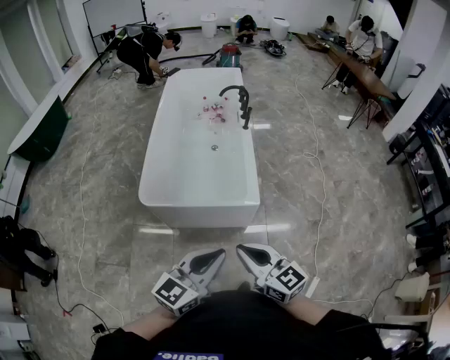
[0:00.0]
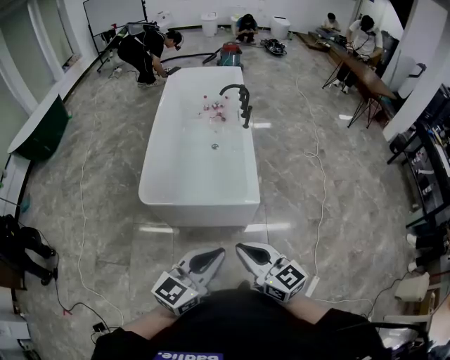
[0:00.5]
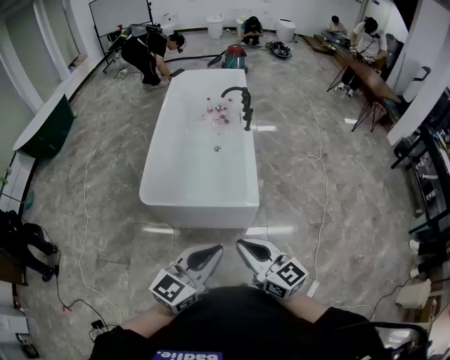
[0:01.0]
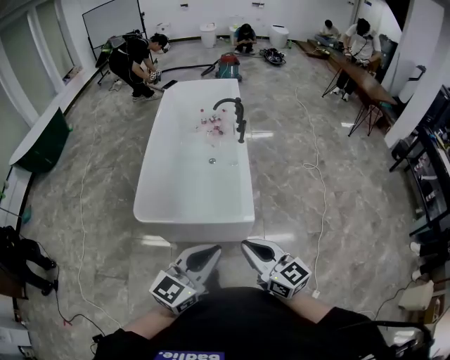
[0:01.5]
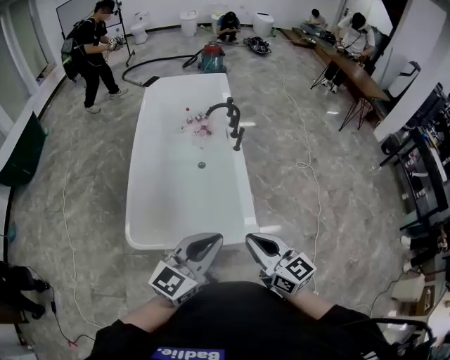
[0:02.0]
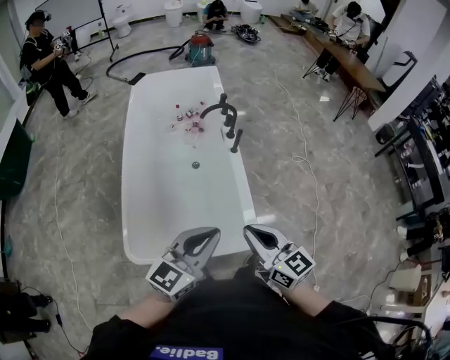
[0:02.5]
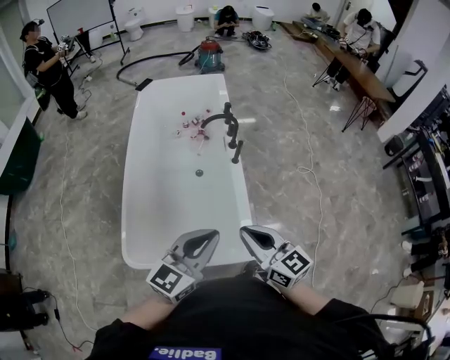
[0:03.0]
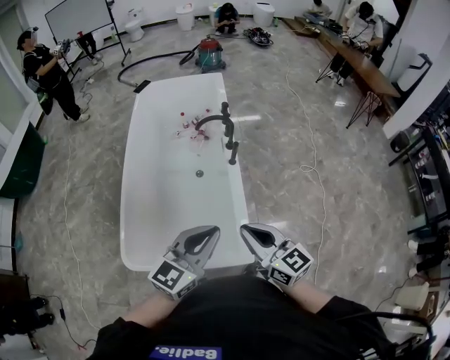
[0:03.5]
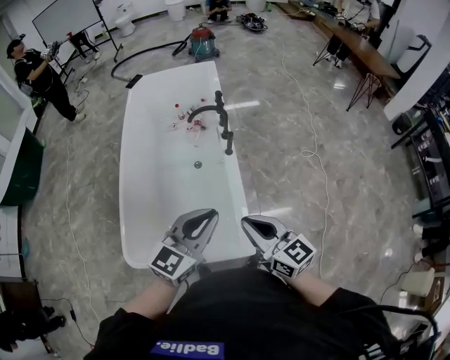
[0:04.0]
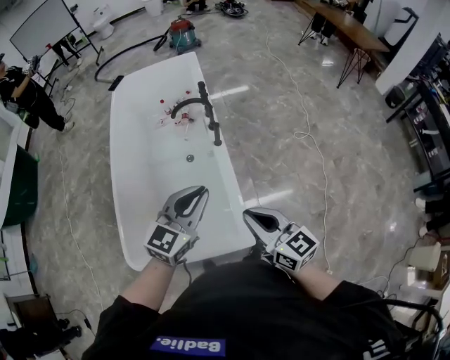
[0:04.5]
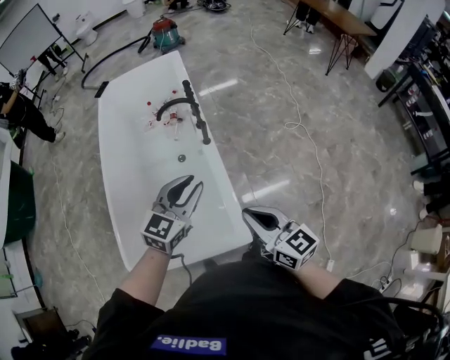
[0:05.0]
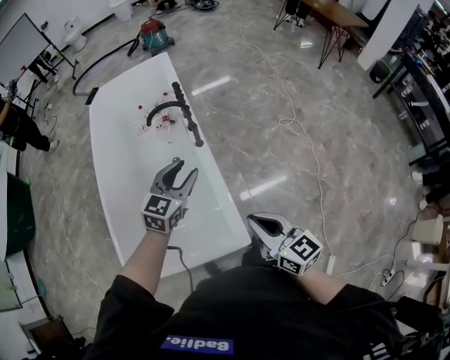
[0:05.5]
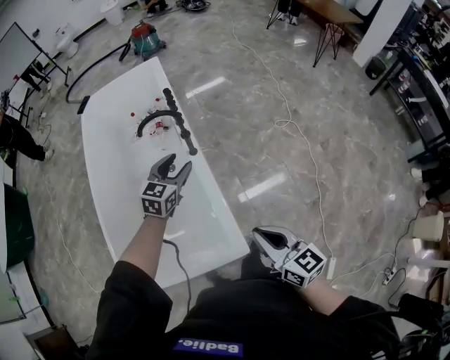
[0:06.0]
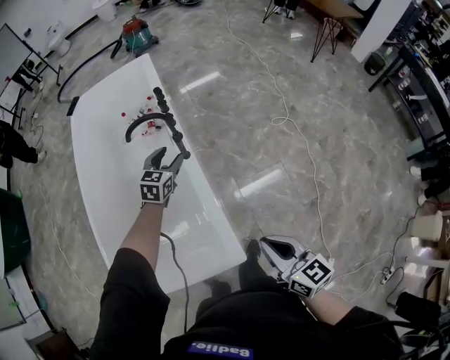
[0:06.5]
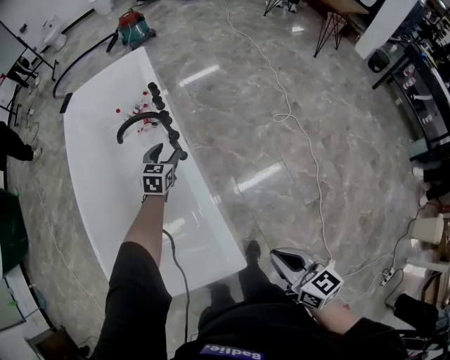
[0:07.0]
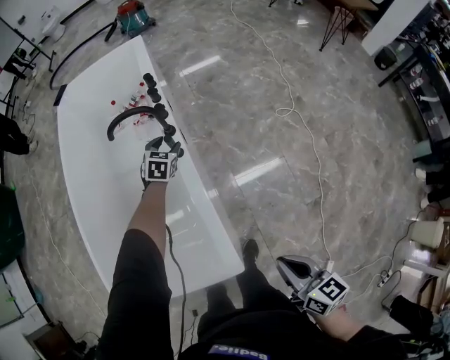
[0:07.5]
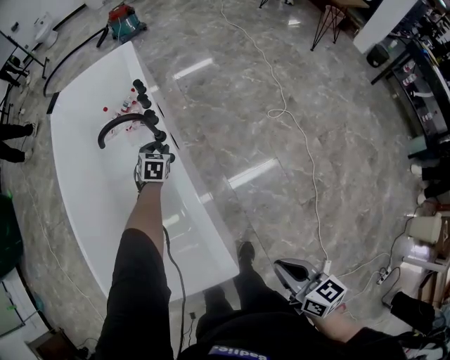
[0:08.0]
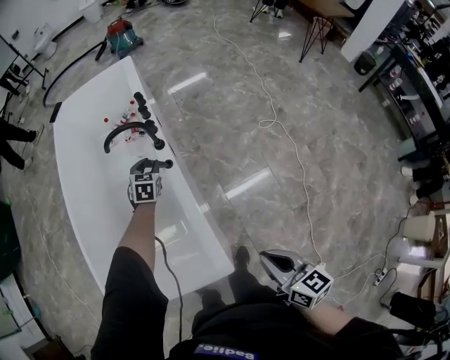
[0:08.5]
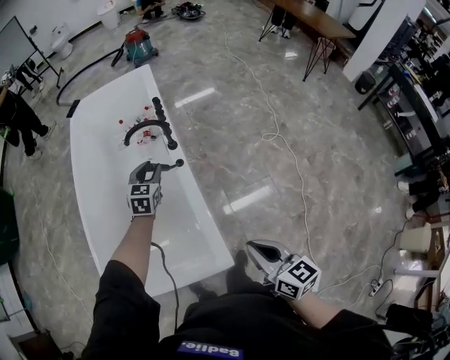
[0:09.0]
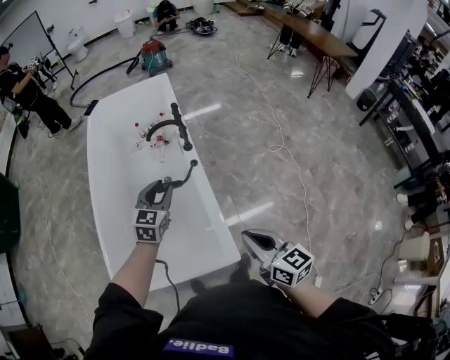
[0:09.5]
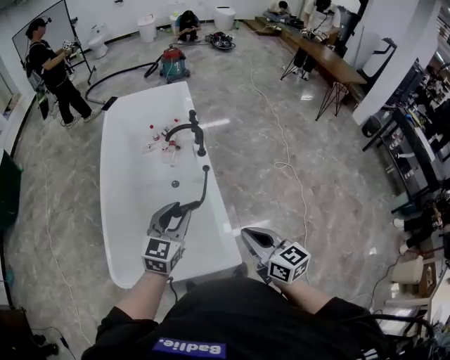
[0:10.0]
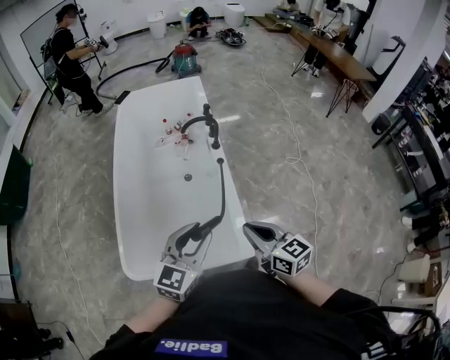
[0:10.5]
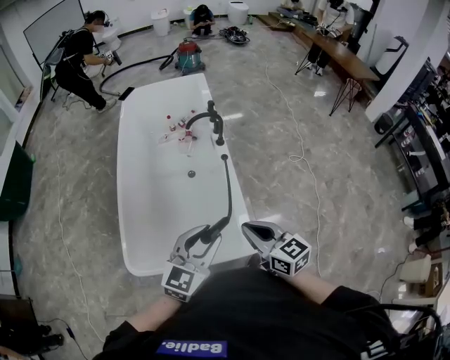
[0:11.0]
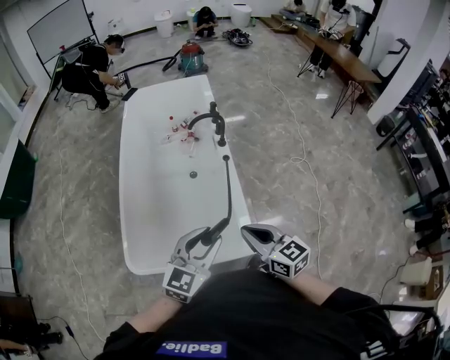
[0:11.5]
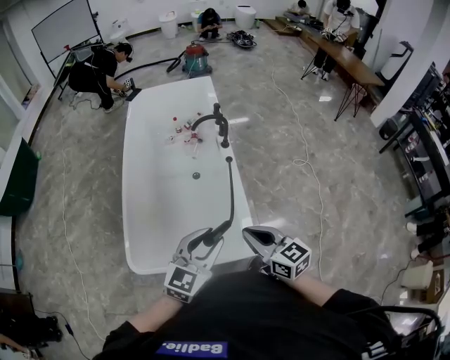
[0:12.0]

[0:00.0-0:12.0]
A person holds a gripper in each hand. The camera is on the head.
0:00.0 to 0:02.0: Both grippers move forward, roughly 30 cm.
0:02.0 to 0:04.0: Both grippers travel together forward, roughly 20 cm.
0:04.0 to 0:06.0: The left gripper goes approximately 30 cm forward and downward, and opens; the right gripper goes roughly 15 cm to the right and downward.
0:06.0 to 0:08.0: The left gripper shifts approximately 30 cm downward and forward, and swivels roughly 30 degrees; the right gripper shifts roughly 15 cm downward and to the right.
0:08.0 to 0:10.0: The right gripper goes about 30 cm to the left and upward, and rotates roughly 20 degrees; the left gripper shifts about 60 cm backward, upward and to the left, and angles its fingers upward, by some 30 degrees.
0:10.0 to 0:12.0: The left gripper moves backward, roughly 15 cm; the right gripper moves to the left, about 10 cm.

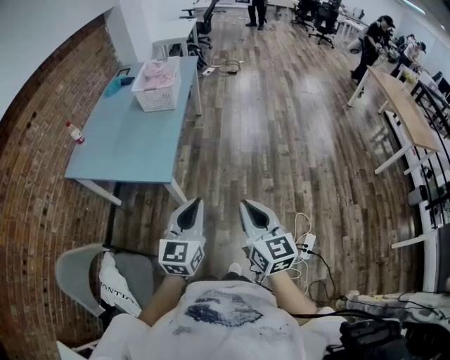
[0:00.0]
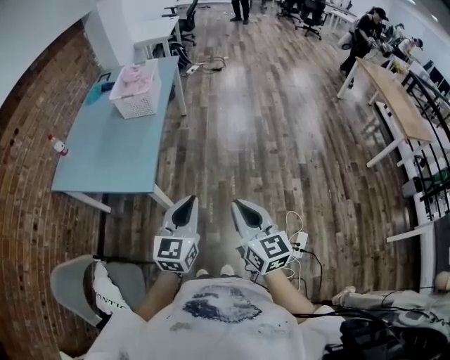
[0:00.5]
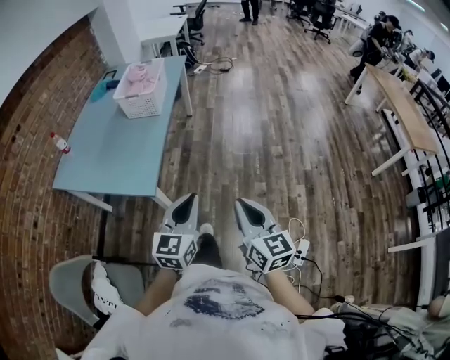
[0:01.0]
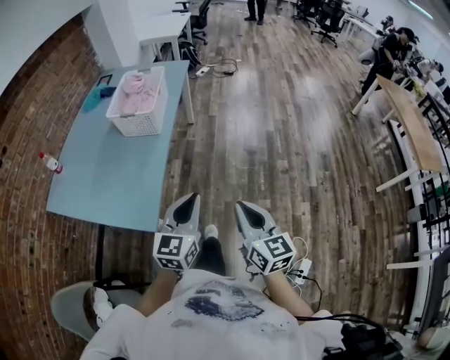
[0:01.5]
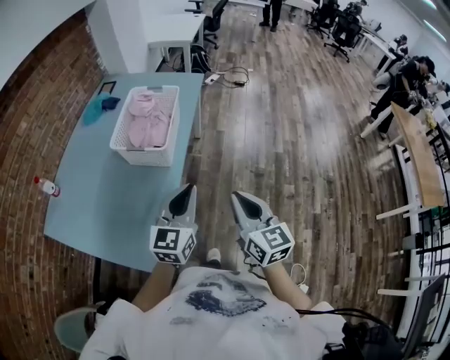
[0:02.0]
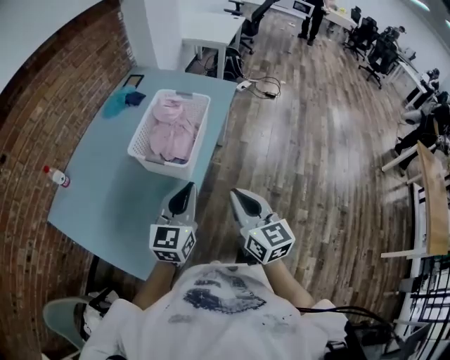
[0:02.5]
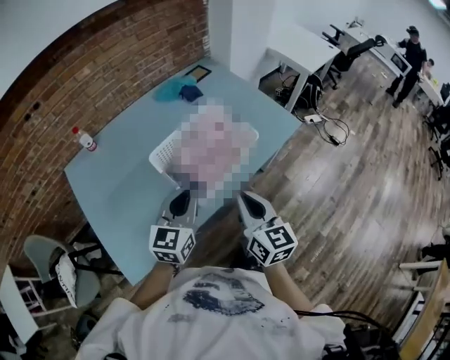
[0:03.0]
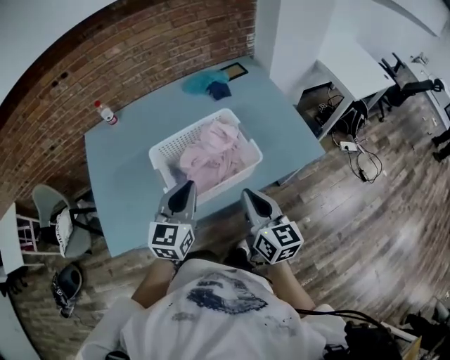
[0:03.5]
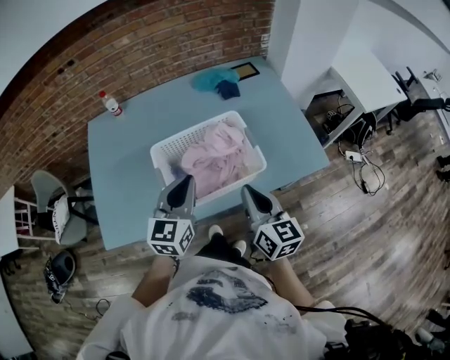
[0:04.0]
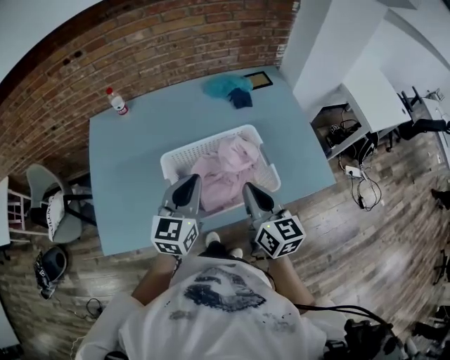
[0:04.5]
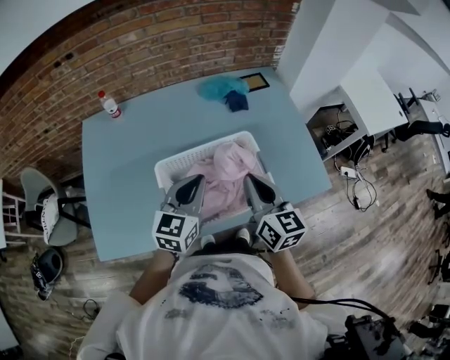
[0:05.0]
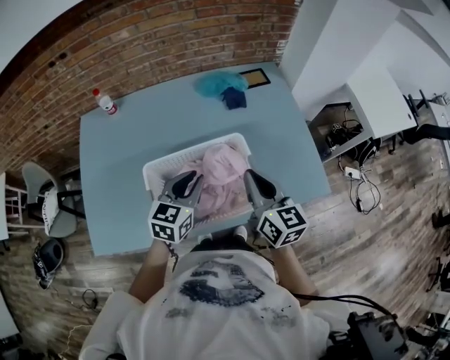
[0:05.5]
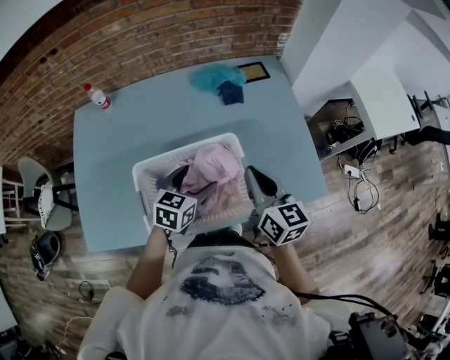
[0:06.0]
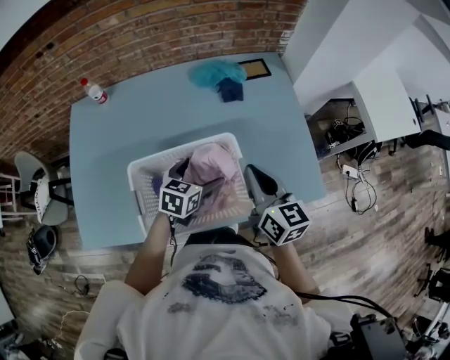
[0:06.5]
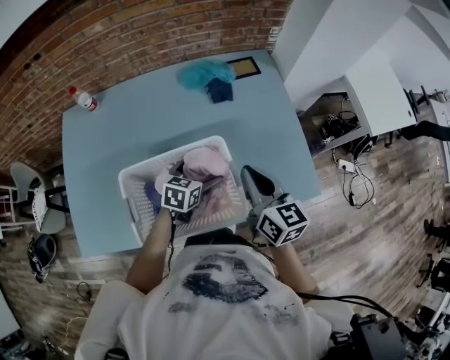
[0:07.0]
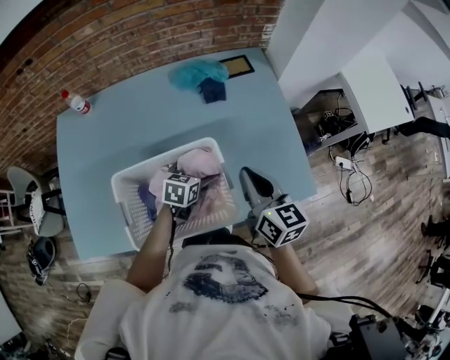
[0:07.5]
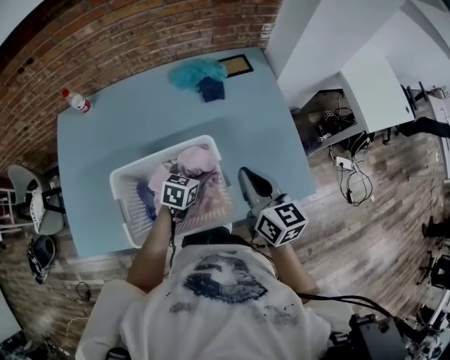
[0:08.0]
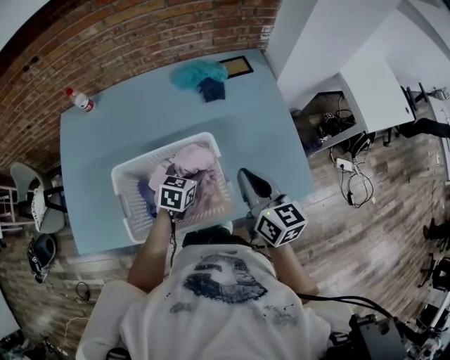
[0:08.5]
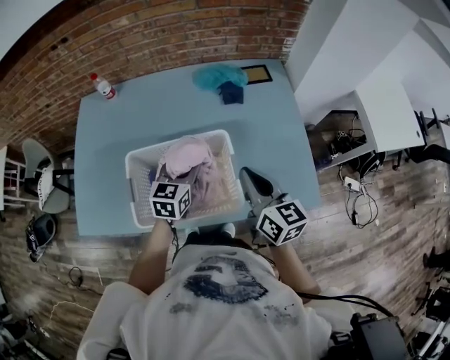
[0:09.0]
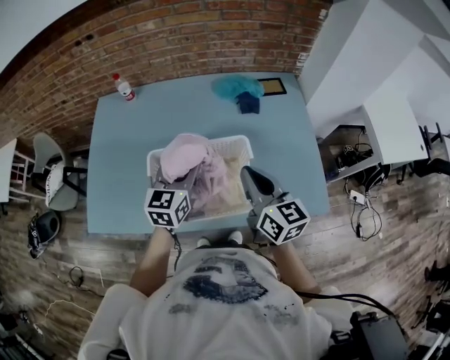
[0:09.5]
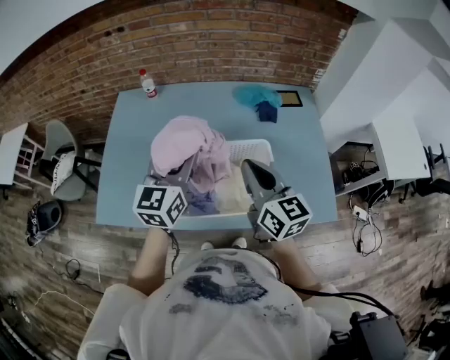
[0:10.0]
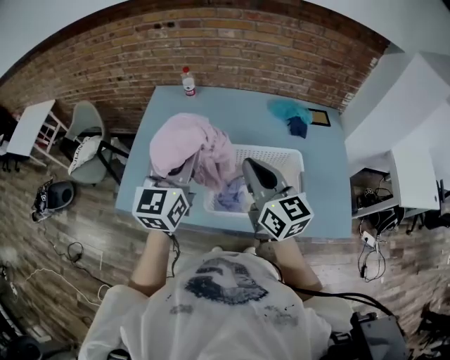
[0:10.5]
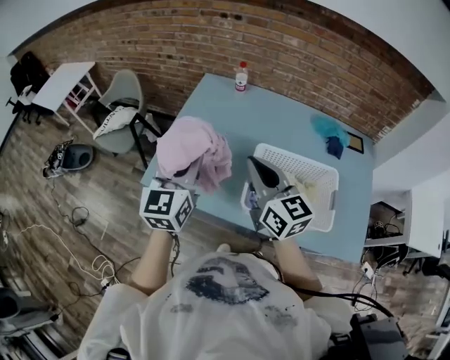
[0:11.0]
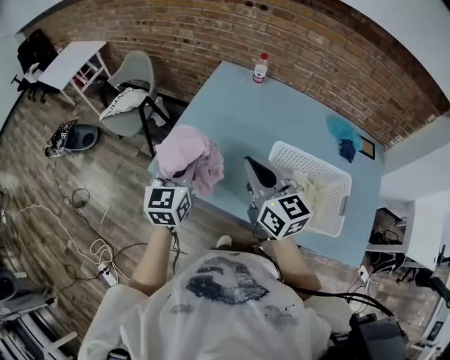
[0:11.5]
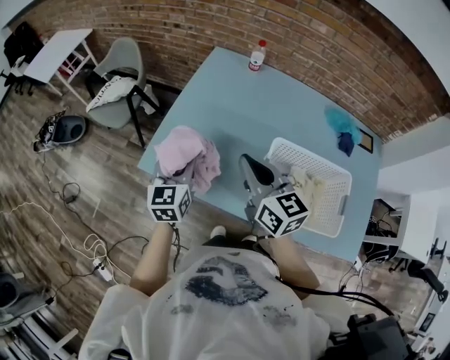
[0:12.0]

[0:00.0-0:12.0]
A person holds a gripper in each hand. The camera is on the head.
0:00.0 to 0:02.0: The pair of grippers is taken forward, about 50 cm.
0:02.0 to 0:04.0: The left gripper shifts by some 35 cm, and swivels about 60 degrees. Meanwhile the right gripper ends up approximately 50 cm from where it was, and turns by some 60 degrees.
0:04.0 to 0:06.0: The left gripper is displaced forward, downward and to the right by approximately 20 cm, turns by roughly 30 degrees, and opens its fingers. Meanwhile the right gripper travels forward by some 20 cm.
0:06.0 to 0:08.0: The right gripper moves roughly 5 cm, while the left gripper travels downward, forward and to the right by approximately 15 cm.
0:08.0 to 0:10.0: The right gripper heads to the left and upward, covering roughly 20 cm. The left gripper heads upward and to the left, covering some 35 cm, and tips its fingers upward by some 40 degrees.
0:10.0 to 0:12.0: The left gripper moves some 35 cm, and rotates some 30 degrees, while the right gripper shifts by approximately 35 cm, and turns by some 30 degrees.

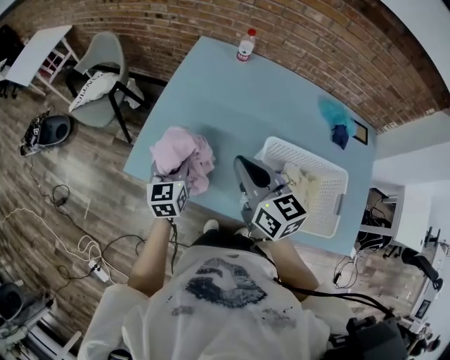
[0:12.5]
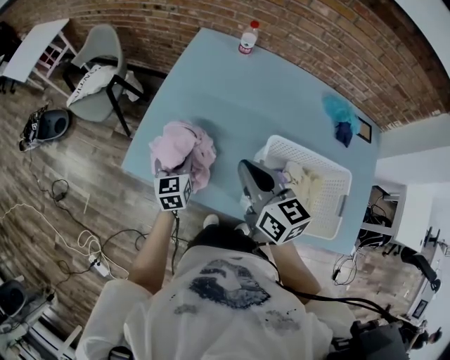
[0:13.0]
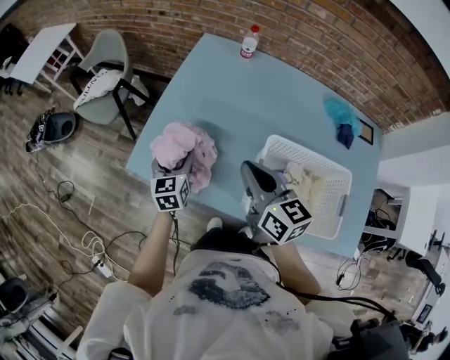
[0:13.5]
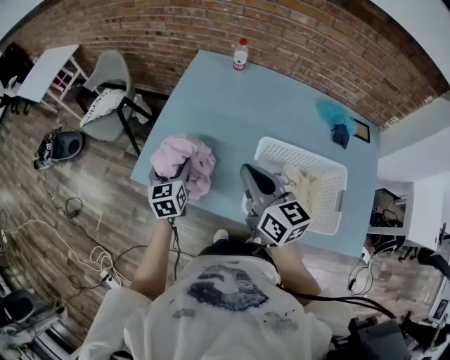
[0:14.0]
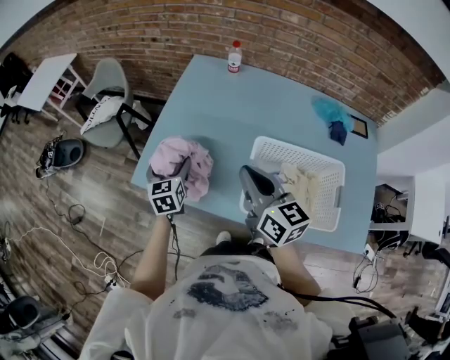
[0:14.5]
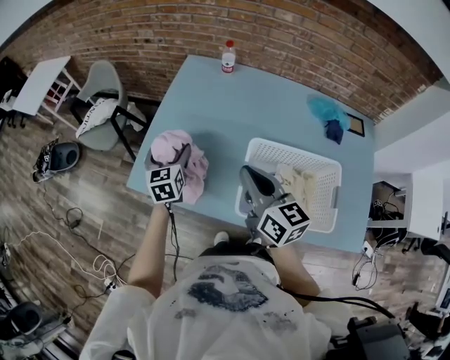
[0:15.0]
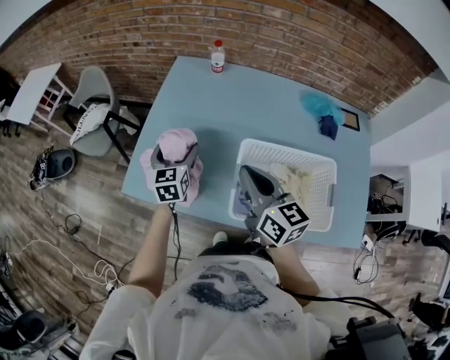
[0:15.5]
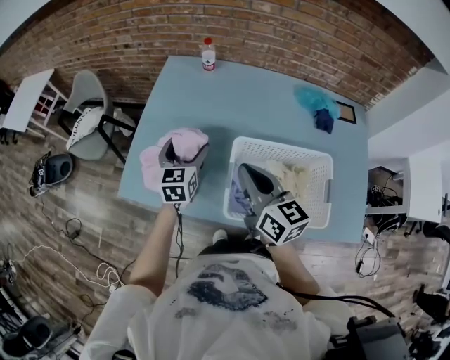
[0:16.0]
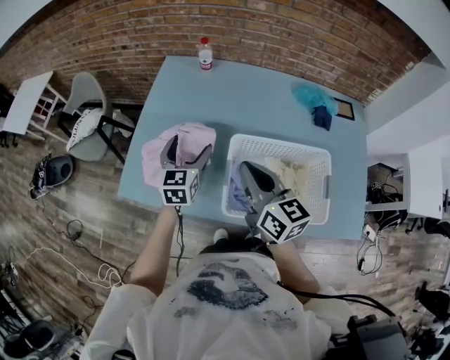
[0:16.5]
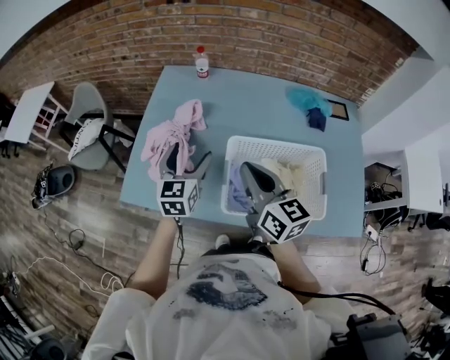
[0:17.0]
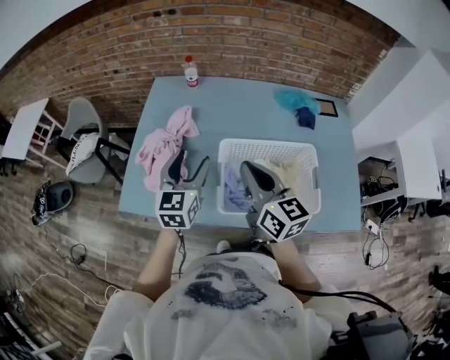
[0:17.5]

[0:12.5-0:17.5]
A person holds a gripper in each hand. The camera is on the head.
0:12.5 to 0:15.0: The right gripper heads to the right, covering about 5 cm. The left gripper ends up about 5 cm from where it was, and opens up.
0:15.0 to 0:17.5: The left gripper travels to the right, upward and backward by some 20 cm, and changes its angle by some 30 degrees; the right gripper heads to the right, covering some 5 cm.
